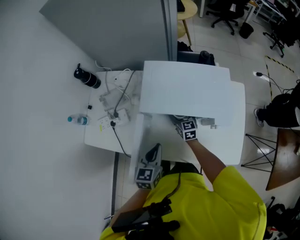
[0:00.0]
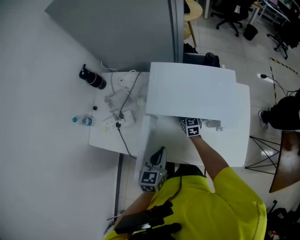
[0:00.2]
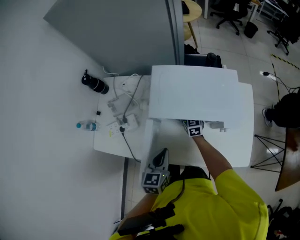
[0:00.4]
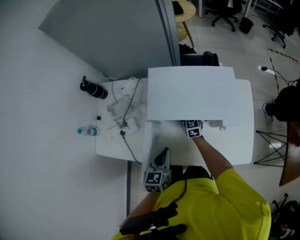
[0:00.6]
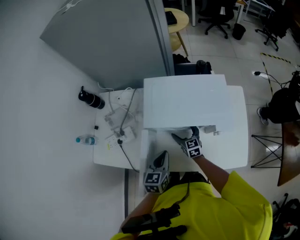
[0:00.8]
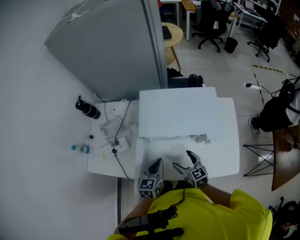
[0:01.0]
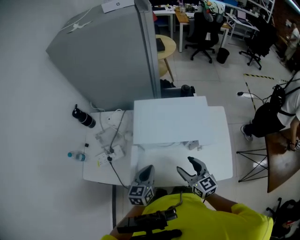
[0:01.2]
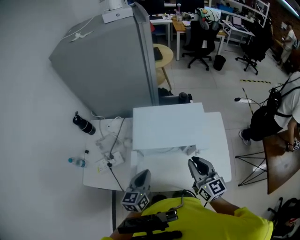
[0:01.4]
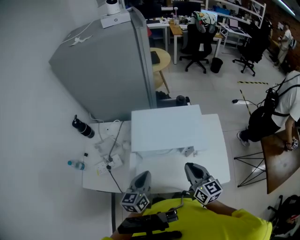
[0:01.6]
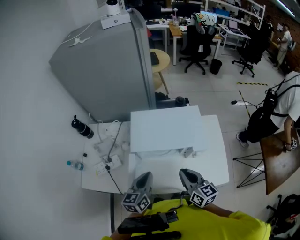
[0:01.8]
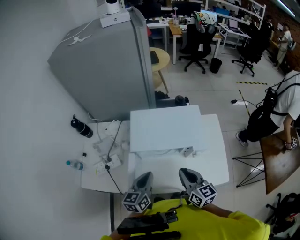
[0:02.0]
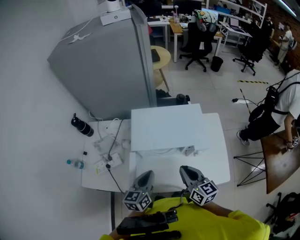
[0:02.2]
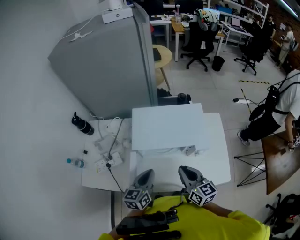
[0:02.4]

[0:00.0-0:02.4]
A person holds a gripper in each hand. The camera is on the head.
0:00.0 to 0:01.2: The right gripper travels upward and backward by about 25 cm.
0:01.2 to 0:02.4: The right gripper is displaced upward by approximately 5 cm, and closes up.

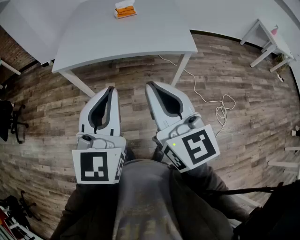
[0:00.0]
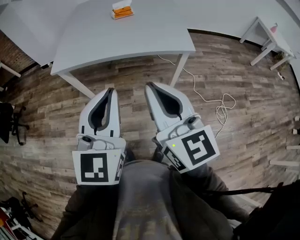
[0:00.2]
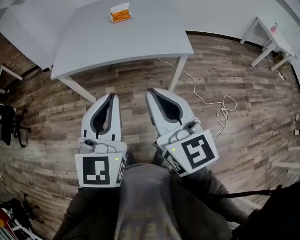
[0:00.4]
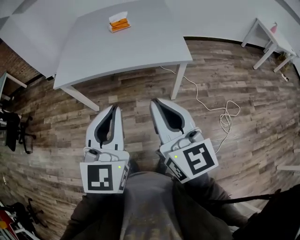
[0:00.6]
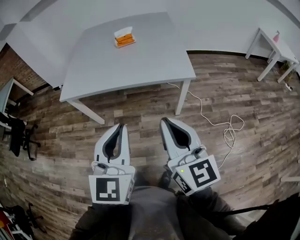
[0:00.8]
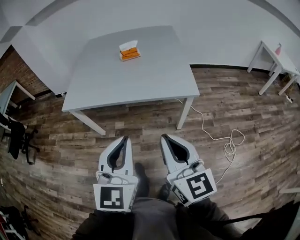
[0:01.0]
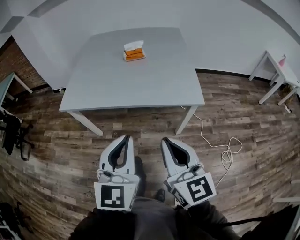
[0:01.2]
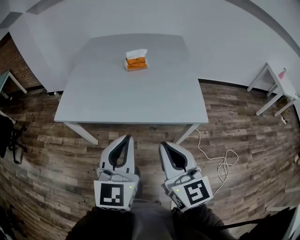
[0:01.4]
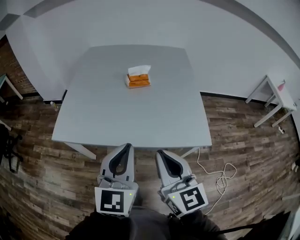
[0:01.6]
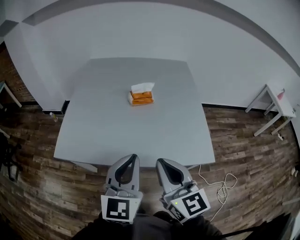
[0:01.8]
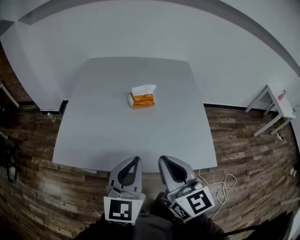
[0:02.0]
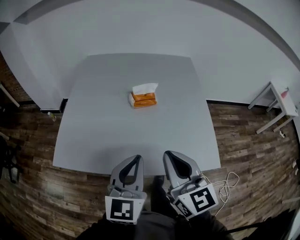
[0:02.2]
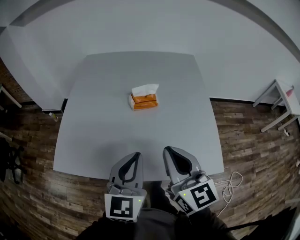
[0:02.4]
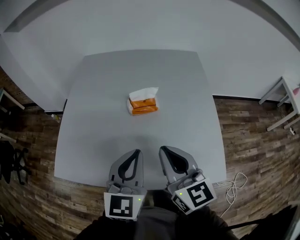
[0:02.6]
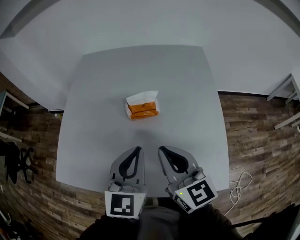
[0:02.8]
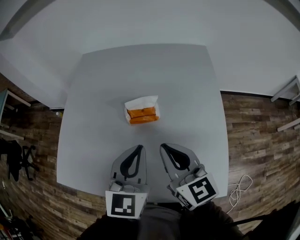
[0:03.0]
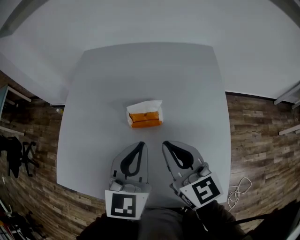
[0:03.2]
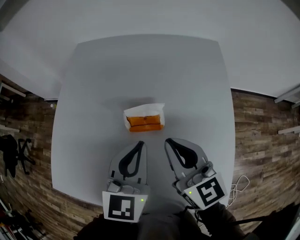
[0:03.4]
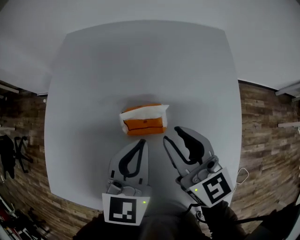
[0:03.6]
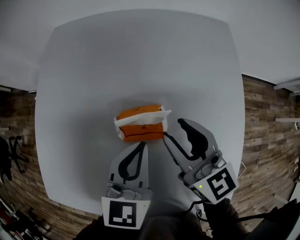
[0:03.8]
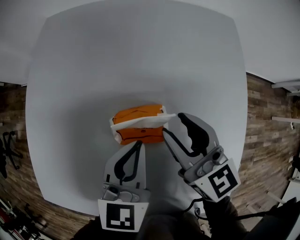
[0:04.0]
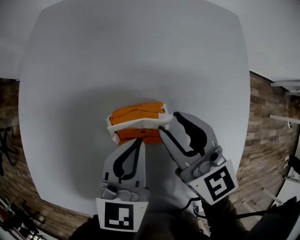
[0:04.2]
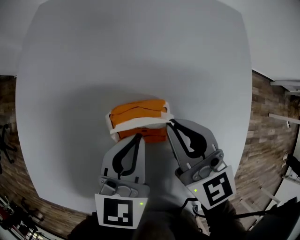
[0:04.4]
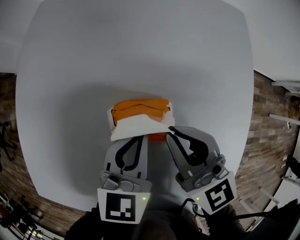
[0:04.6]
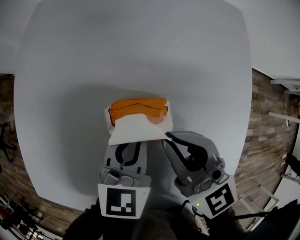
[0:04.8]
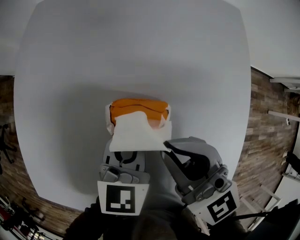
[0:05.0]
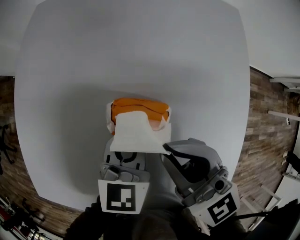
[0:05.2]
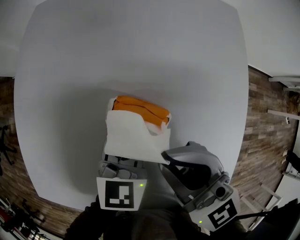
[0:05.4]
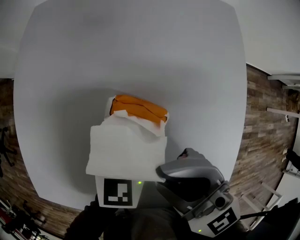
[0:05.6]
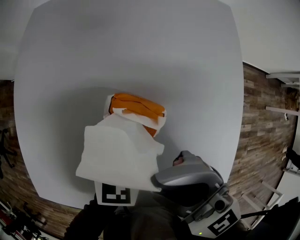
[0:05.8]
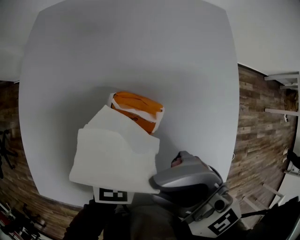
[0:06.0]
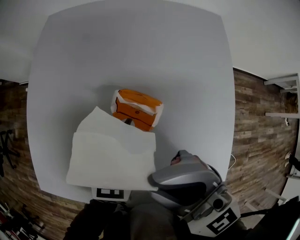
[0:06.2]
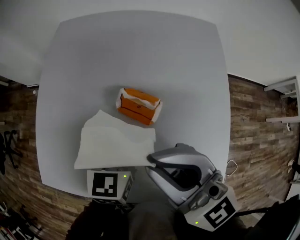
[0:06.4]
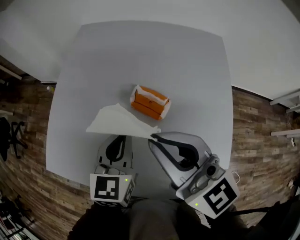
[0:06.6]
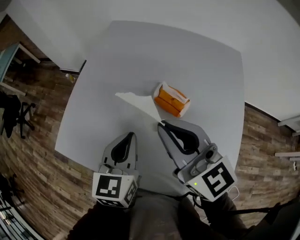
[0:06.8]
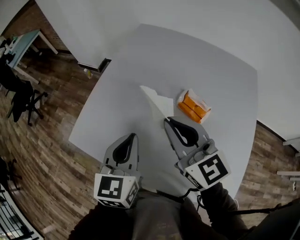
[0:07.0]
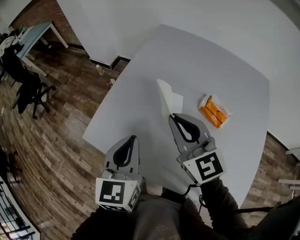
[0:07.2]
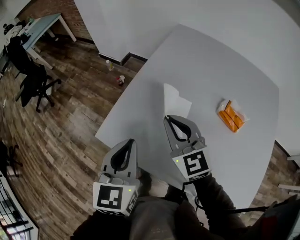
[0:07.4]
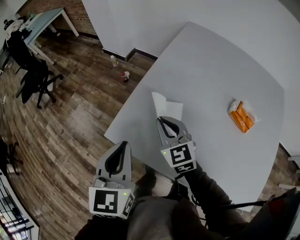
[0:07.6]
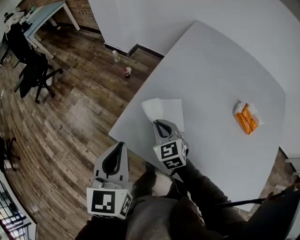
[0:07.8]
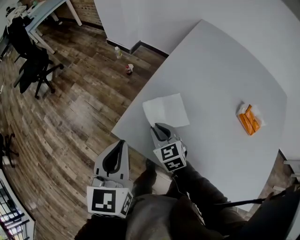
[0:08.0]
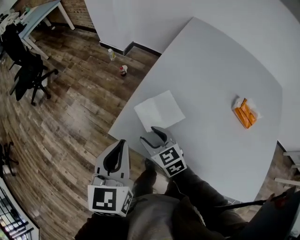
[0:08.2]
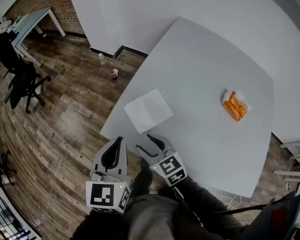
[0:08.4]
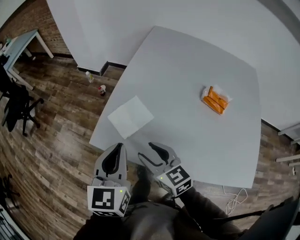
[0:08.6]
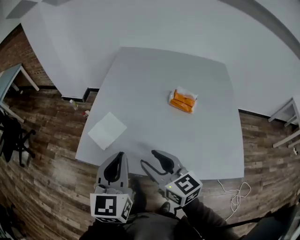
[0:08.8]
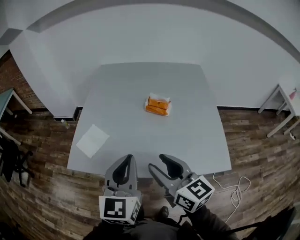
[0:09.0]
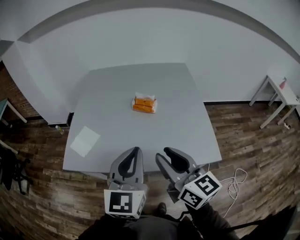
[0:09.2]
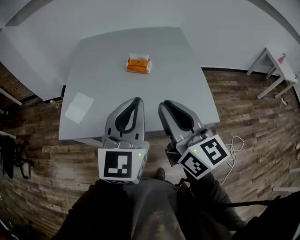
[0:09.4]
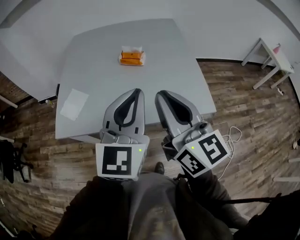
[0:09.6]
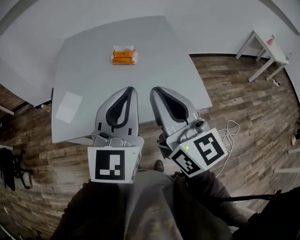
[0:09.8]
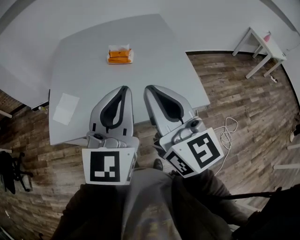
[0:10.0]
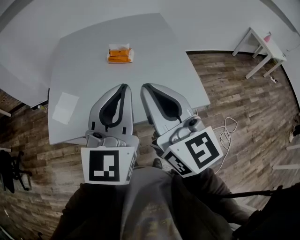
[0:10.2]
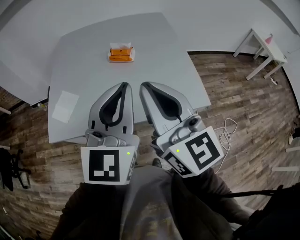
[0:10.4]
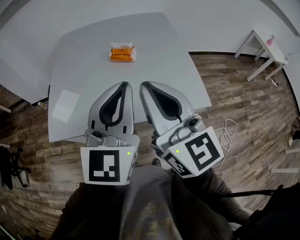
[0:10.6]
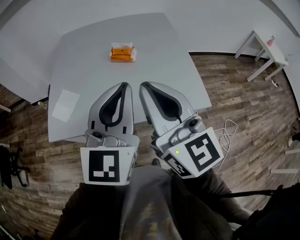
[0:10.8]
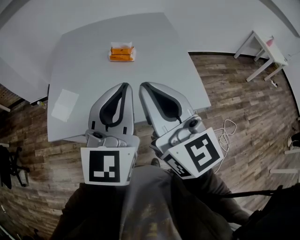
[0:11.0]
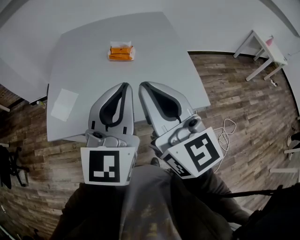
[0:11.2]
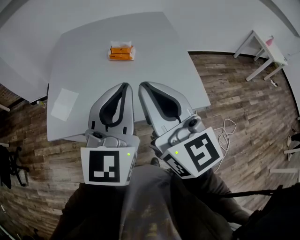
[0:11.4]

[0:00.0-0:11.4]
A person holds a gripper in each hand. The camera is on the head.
0:00.0 to 0:01.4: The grippers both shift forward by about 20 cm.
0:01.4 to 0:02.8: The pair of grippers is taken forward, some 40 cm.
0:02.8 to 0:04.2: Both grippers move forward and downward, roughly 30 cm. The right gripper opens its fingers.
0:04.2 to 0:05.6: The right gripper shifts approximately 10 cm upward and backward, swivels roughly 20 degrees, and closes its fingers. Meanwhile the left gripper moves roughly 5 cm.
0:05.6 to 0:07.2: The left gripper ends up approximately 50 cm from where it was, and changes its angle by some 40 degrees. The right gripper moves about 30 cm.
0:07.2 to 0:08.6: The right gripper travels to the left and downward by approximately 25 cm, swivels roughly 20 degrees, and opens. The left gripper is displaced to the left by about 15 cm.
0:08.6 to 0:10.0: The right gripper changes place by roughly 50 cm, tilts its fingers approximately 30 degrees upward, and closes its fingers, while the left gripper shifts by roughly 40 cm, and swivels about 40 degrees.
0:10.0 to 0:11.4: The grippers move only a little.

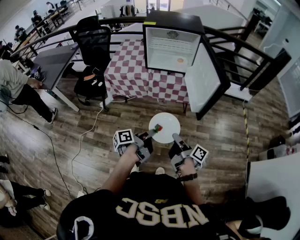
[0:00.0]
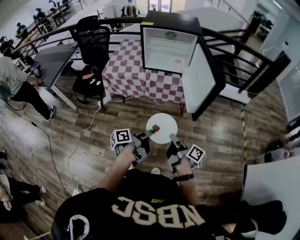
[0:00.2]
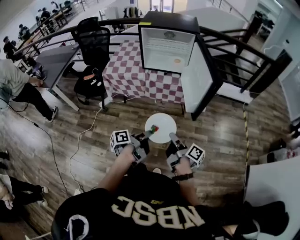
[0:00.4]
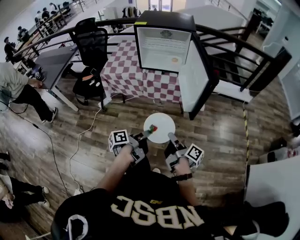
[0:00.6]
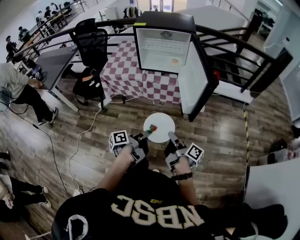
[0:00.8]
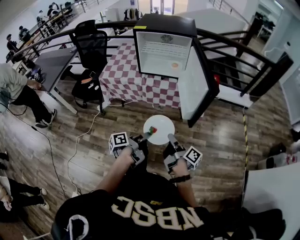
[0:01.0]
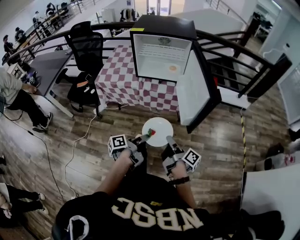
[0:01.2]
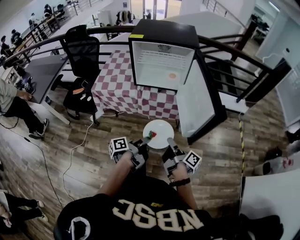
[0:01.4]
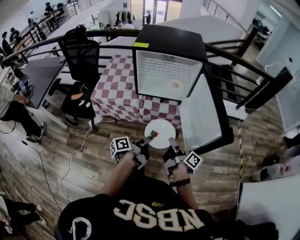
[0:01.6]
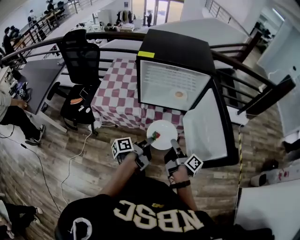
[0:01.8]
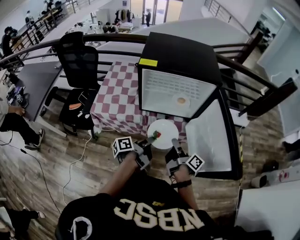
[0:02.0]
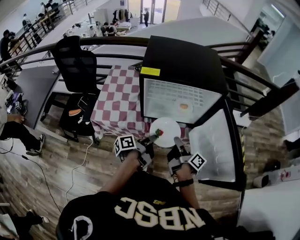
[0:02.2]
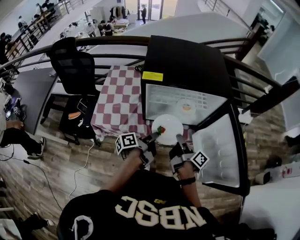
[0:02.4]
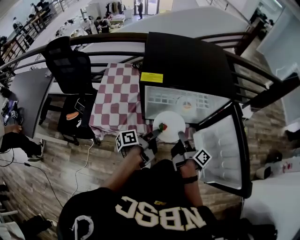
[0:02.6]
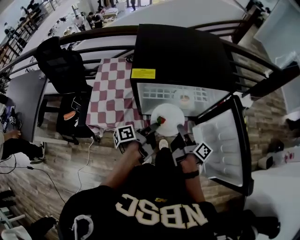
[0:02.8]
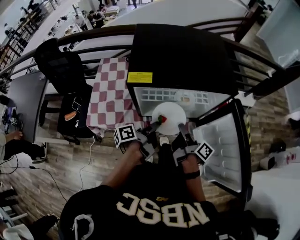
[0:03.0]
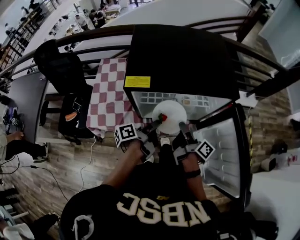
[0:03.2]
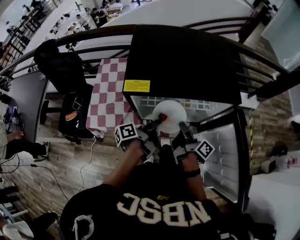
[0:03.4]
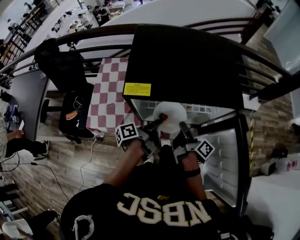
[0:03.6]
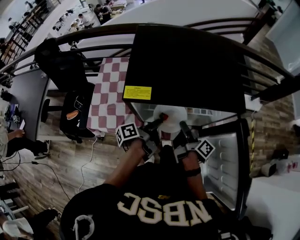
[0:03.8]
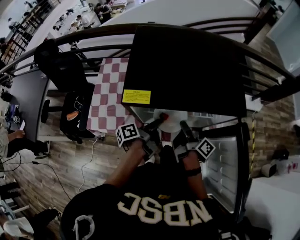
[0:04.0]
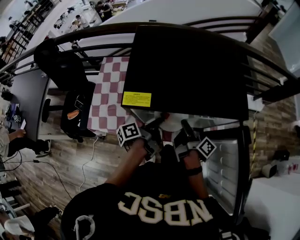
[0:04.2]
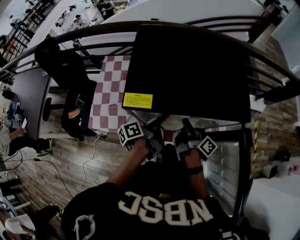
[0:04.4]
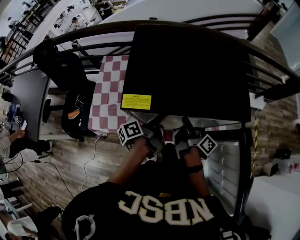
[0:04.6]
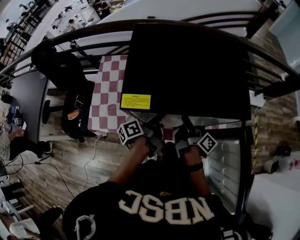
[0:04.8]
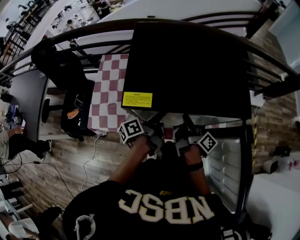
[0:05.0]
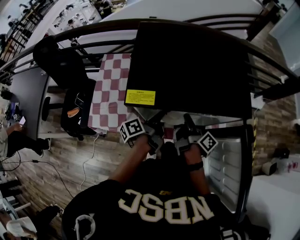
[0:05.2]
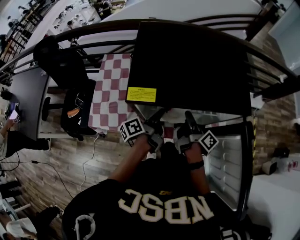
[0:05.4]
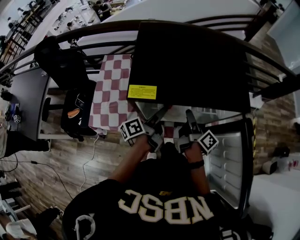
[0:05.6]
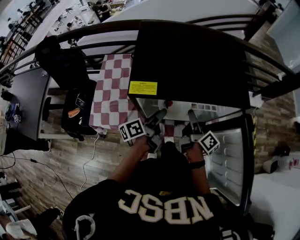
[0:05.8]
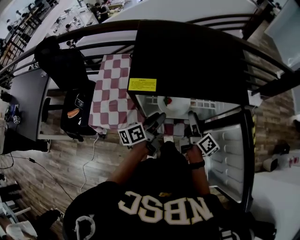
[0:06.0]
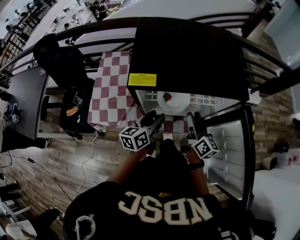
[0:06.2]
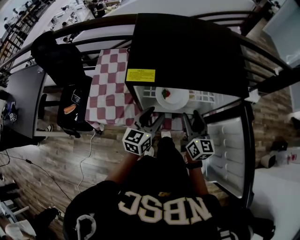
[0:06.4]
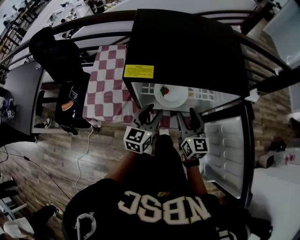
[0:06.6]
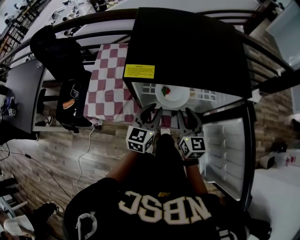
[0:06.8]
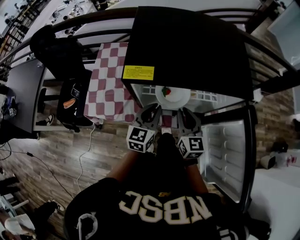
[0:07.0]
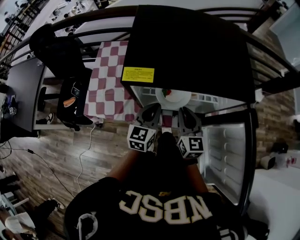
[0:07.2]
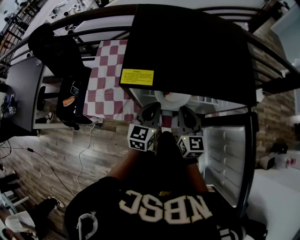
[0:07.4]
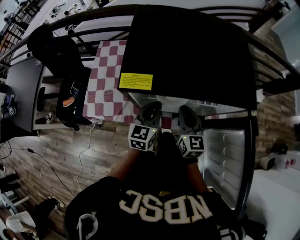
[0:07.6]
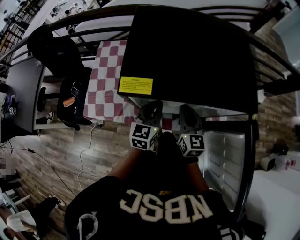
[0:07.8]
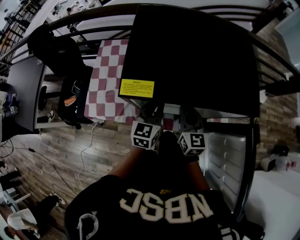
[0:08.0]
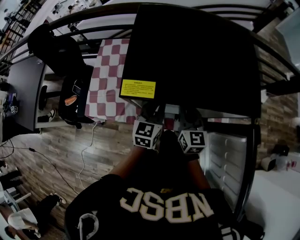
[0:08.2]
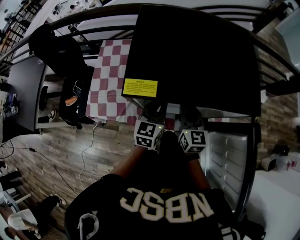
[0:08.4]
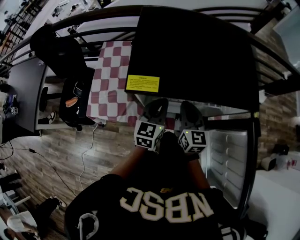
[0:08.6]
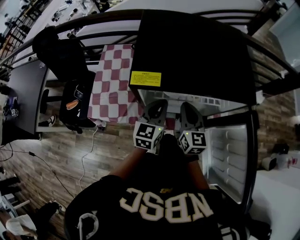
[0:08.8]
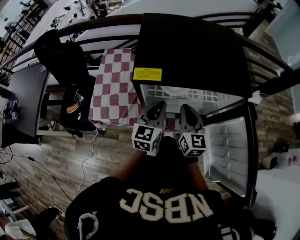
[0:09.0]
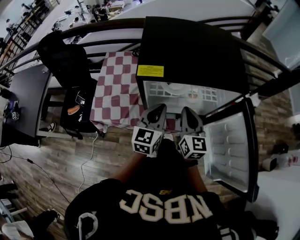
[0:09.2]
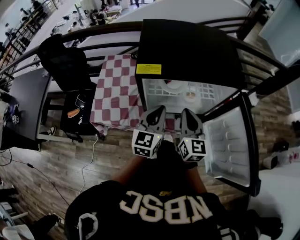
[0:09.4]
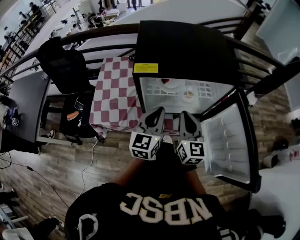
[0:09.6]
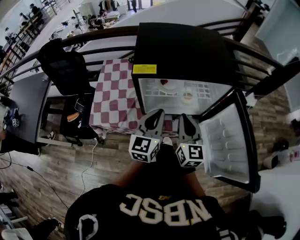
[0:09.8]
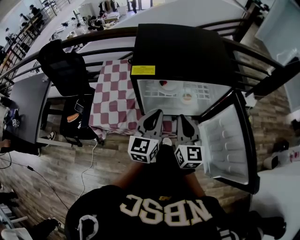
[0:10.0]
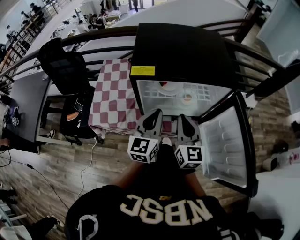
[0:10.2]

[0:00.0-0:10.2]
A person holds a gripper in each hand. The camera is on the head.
0:00.0 to 0:01.4: Both grippers travel together forward, some 15 cm.
0:01.4 to 0:03.0: Both grippers move forward, about 35 cm.
0:03.0 to 0:04.4: Both grippers move forward, approximately 10 cm.
0:04.4 to 0:05.8: The left gripper opens. Meanwhile the right gripper opens.
0:05.8 to 0:07.2: The right gripper shifts by roughly 5 cm, twists approximately 70 degrees counterclockwise, seen from behind, and closes up. The left gripper twists about 60 degrees clockwise, seen from behind, and closes.
0:07.2 to 0:08.8: The grippers move only a little.
0:08.8 to 0:10.2: Both grippers move backward and upward, approximately 10 cm.
